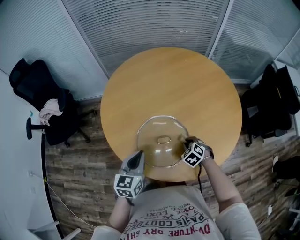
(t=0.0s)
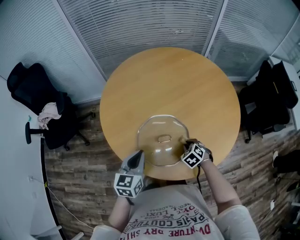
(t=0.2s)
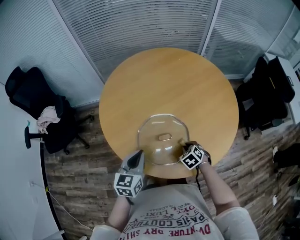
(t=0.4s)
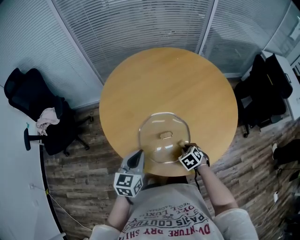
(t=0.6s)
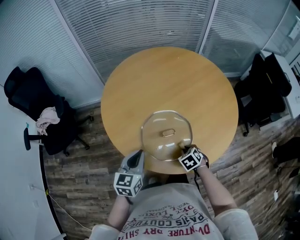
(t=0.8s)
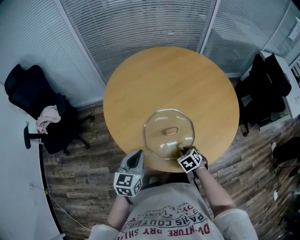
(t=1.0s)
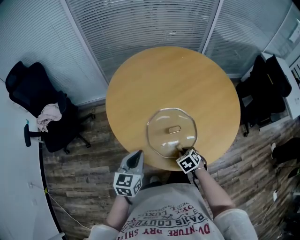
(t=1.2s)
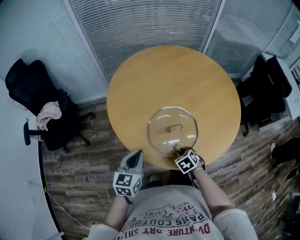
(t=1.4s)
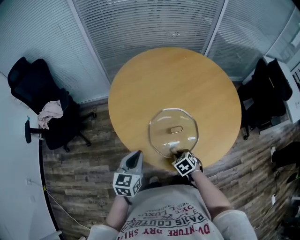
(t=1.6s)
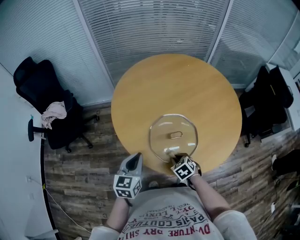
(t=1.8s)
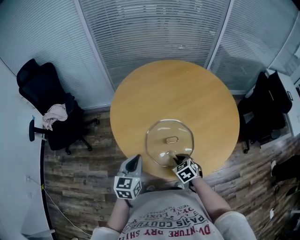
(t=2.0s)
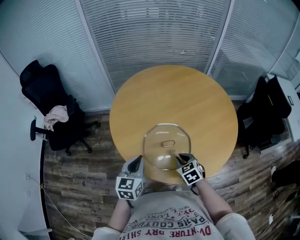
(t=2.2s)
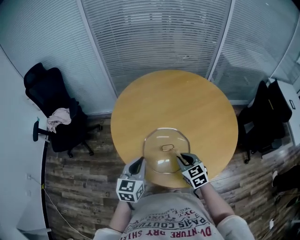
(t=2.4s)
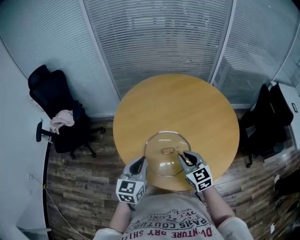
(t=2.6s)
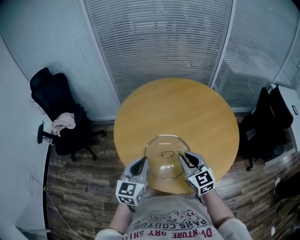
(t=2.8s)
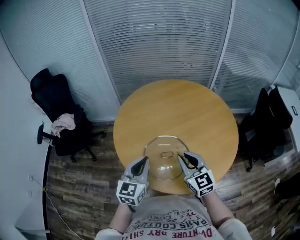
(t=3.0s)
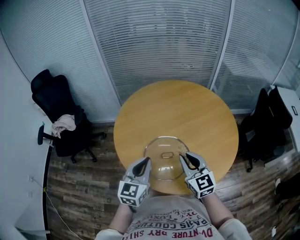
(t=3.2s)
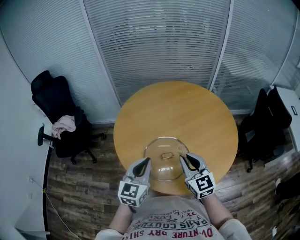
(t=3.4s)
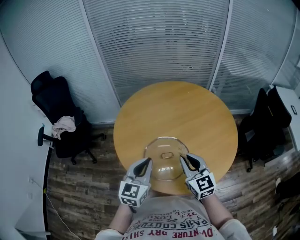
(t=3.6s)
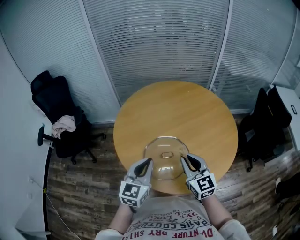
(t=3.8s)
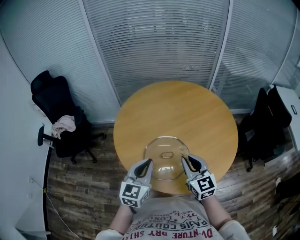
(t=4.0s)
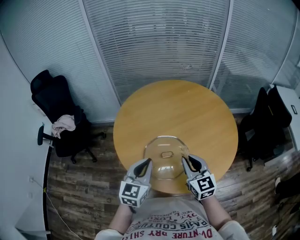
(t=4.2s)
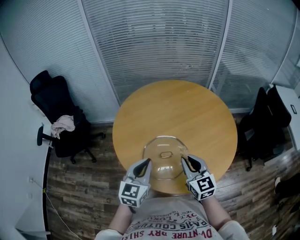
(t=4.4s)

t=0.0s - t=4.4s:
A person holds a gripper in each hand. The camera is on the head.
t=0.0s - t=1.4s: The right gripper moves backward and to the left, about 15 cm, and changes its angle by about 20 degrees; the left gripper heads to the left and backward, covering some 10 cm.
t=1.4s - t=3.0s: The left gripper shifts roughly 15 cm upward and to the right. Meanwhile the right gripper is displaced upward by roughly 25 cm, and tilts its fingers approximately 60 degrees upward.
t=3.0s - t=4.4s: The grippers move only a little.

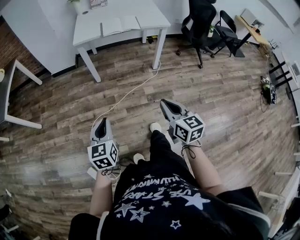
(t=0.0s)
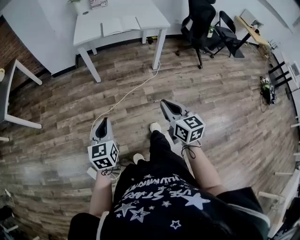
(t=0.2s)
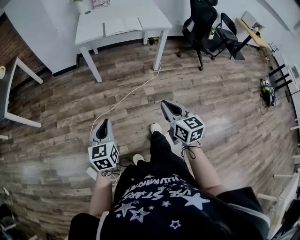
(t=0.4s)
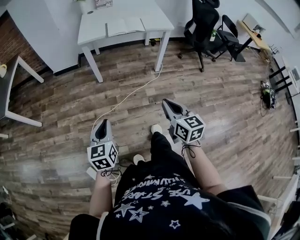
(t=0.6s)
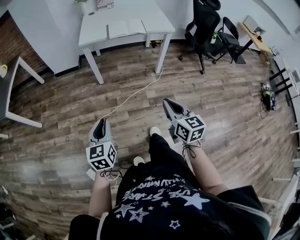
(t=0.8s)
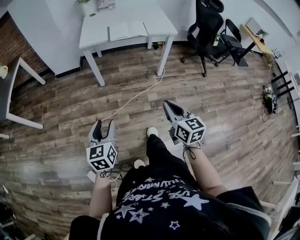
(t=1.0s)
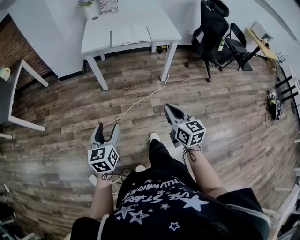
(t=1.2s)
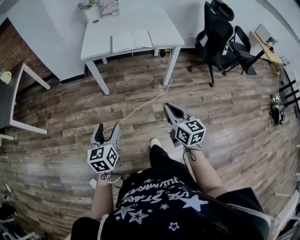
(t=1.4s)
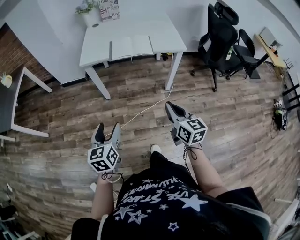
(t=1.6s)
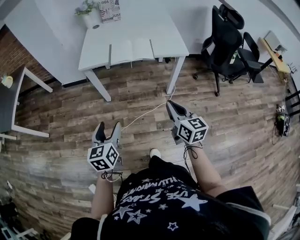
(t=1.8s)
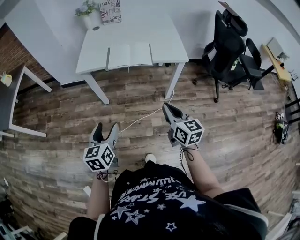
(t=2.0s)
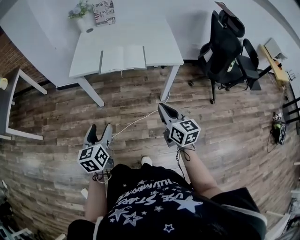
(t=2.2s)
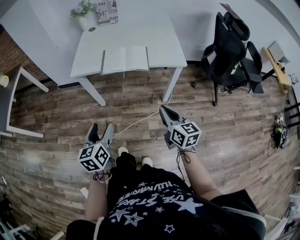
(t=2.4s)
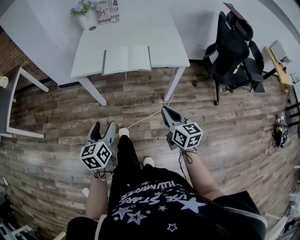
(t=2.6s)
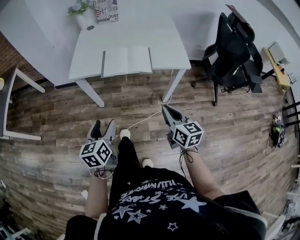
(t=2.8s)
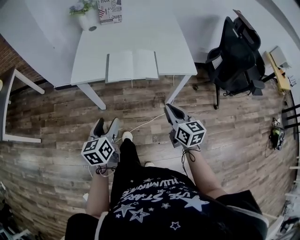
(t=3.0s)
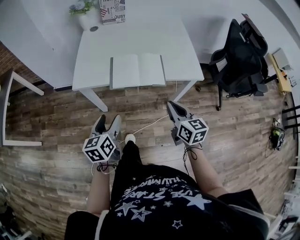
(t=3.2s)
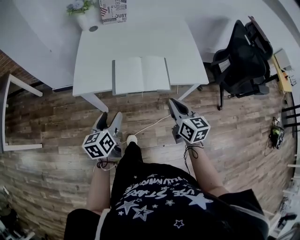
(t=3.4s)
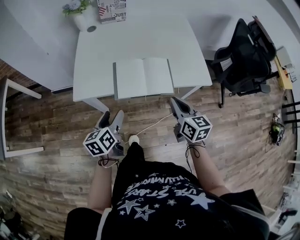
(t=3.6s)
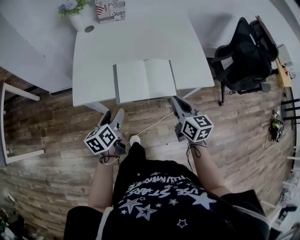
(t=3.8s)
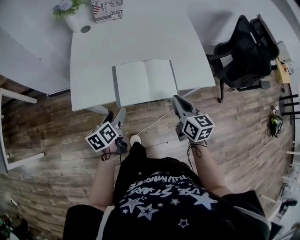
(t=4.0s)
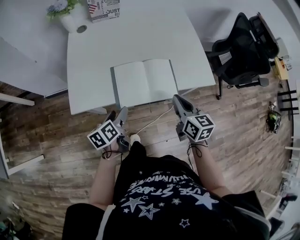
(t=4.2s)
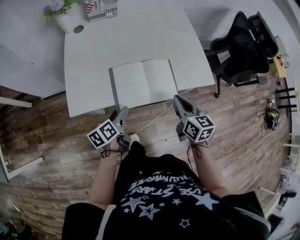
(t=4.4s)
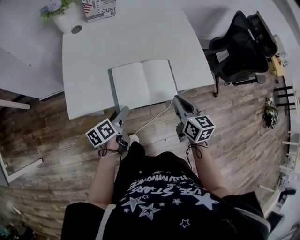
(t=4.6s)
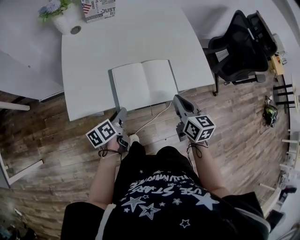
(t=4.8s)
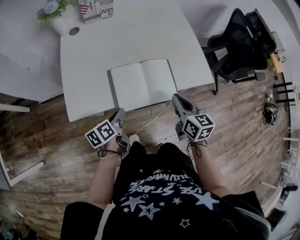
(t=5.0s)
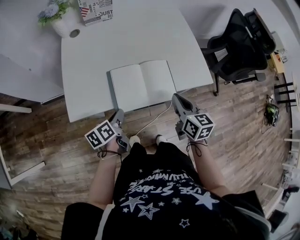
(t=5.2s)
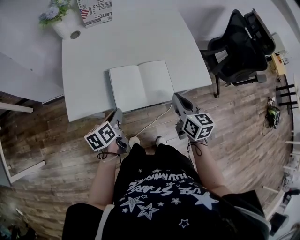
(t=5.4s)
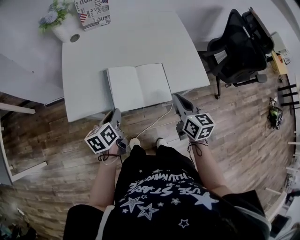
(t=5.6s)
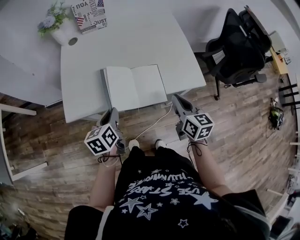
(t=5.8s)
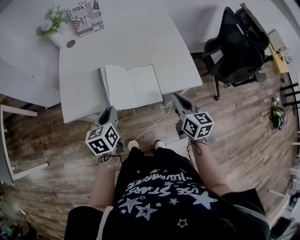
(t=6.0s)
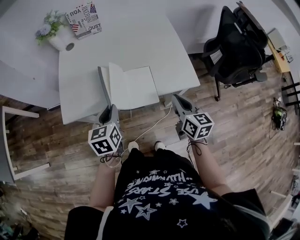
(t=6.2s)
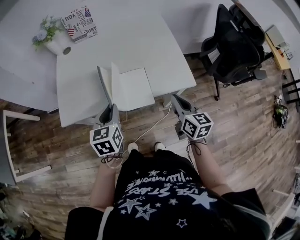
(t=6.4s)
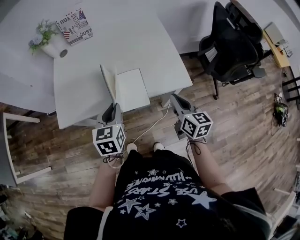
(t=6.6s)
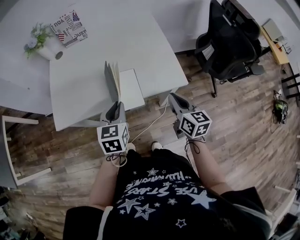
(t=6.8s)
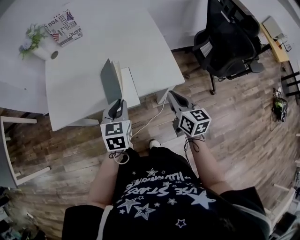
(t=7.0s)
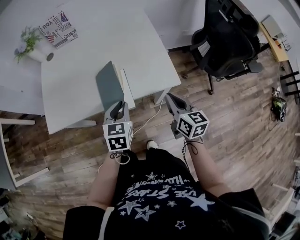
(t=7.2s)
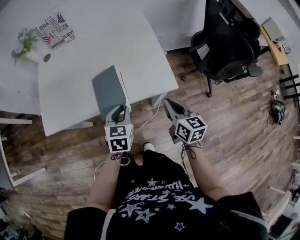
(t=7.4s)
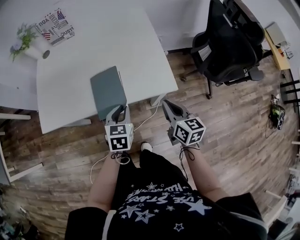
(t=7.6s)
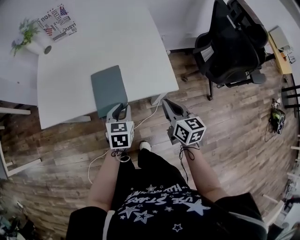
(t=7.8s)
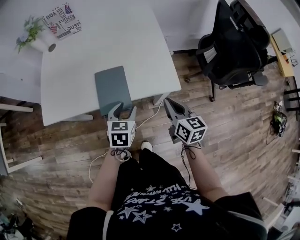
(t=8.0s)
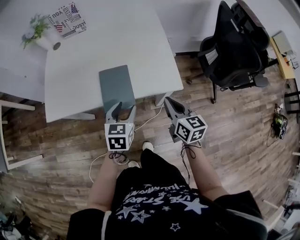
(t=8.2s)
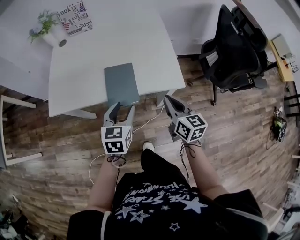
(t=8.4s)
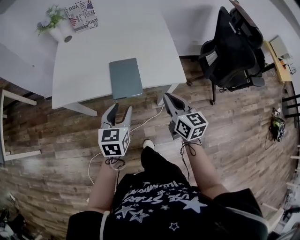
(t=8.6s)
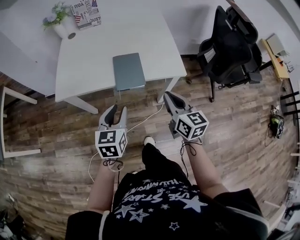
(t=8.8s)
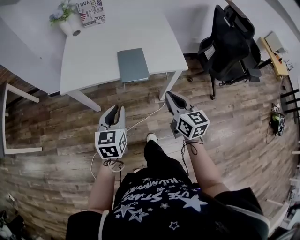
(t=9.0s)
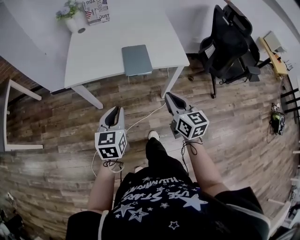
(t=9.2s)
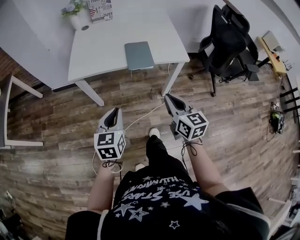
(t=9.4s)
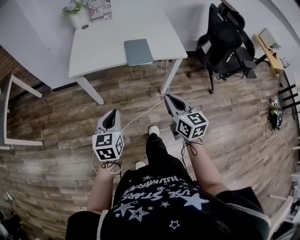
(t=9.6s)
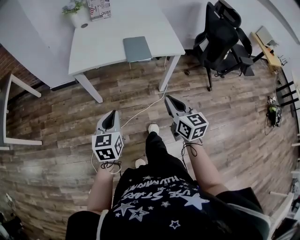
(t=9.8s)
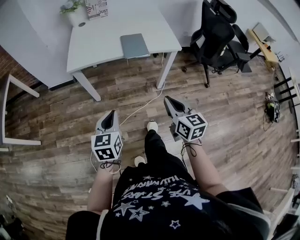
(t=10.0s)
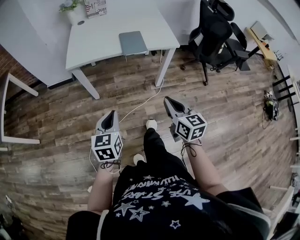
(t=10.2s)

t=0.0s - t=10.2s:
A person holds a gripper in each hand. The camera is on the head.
t=0.0s - t=1.4s: The two grippers go approximately 15 cm forward. The left gripper opens up.
t=1.4s - t=3.0s: Both grippers travel together forward, some 30 cm.
t=3.0s - t=4.4s: The left gripper heads forward and downward, covering some 25 cm, and turns by roughly 30 degrees; the right gripper shifts roughly 20 cm forward.
t=4.4s - t=5.8s: The right gripper travels to the right by some 5 cm, while the left gripper heads upward, covering about 10 cm, rotates some 20 degrees, and closes its fingers.
t=5.8s - t=7.2s: The right gripper goes some 15 cm to the right, while the left gripper is displaced to the right by roughly 25 cm, and swivels approximately 30 degrees.
t=7.2s - t=8.8s: The left gripper moves backward and to the left, roughly 15 cm. The right gripper moves backward, to the left and upward, some 15 cm.
t=8.8s - t=10.2s: The right gripper goes some 25 cm backward; the left gripper moves backward and to the left, about 30 cm, and closes up.

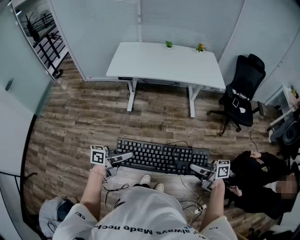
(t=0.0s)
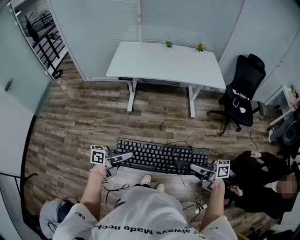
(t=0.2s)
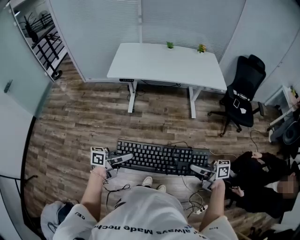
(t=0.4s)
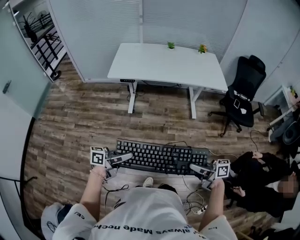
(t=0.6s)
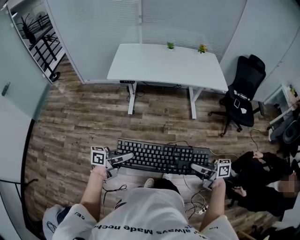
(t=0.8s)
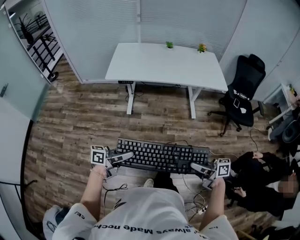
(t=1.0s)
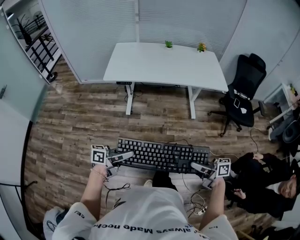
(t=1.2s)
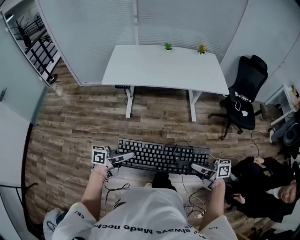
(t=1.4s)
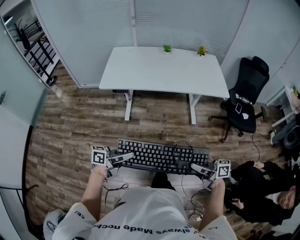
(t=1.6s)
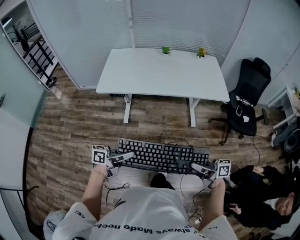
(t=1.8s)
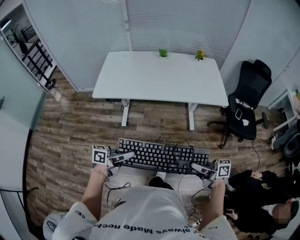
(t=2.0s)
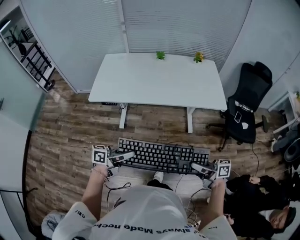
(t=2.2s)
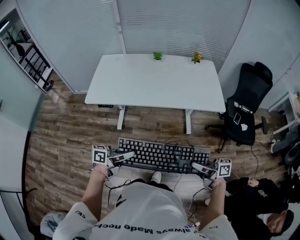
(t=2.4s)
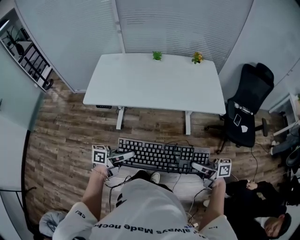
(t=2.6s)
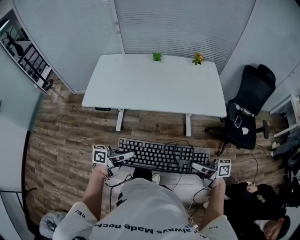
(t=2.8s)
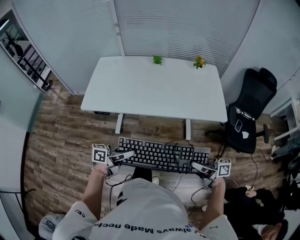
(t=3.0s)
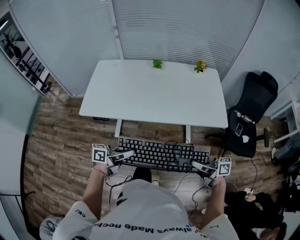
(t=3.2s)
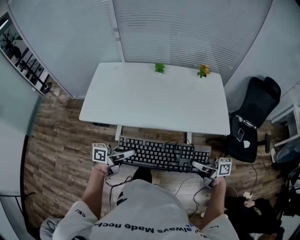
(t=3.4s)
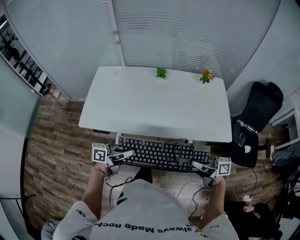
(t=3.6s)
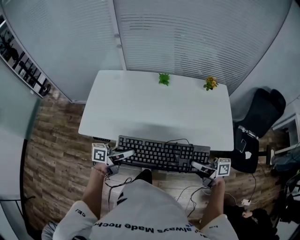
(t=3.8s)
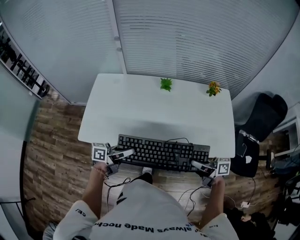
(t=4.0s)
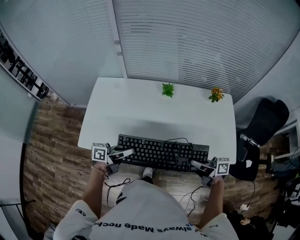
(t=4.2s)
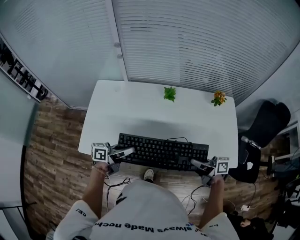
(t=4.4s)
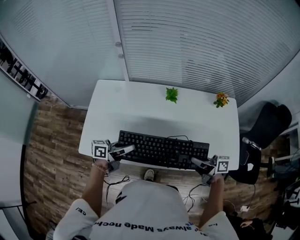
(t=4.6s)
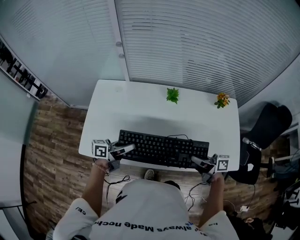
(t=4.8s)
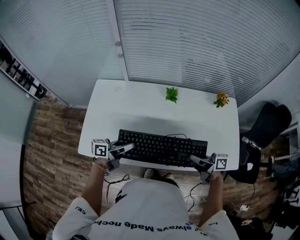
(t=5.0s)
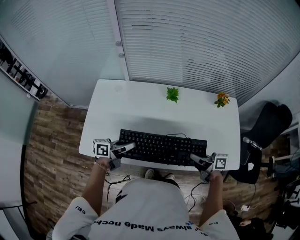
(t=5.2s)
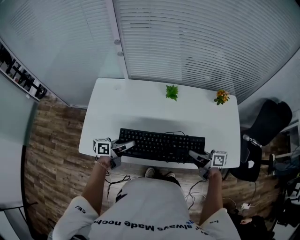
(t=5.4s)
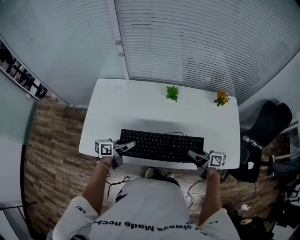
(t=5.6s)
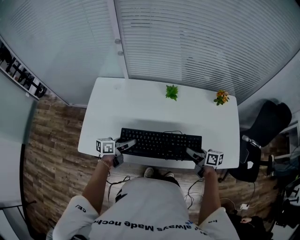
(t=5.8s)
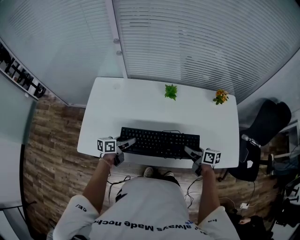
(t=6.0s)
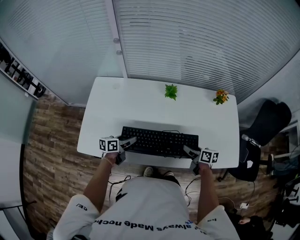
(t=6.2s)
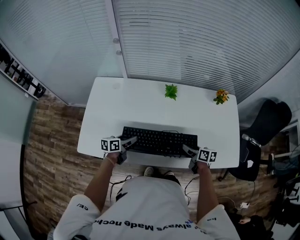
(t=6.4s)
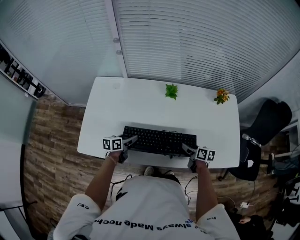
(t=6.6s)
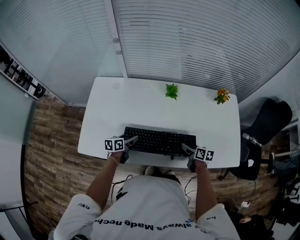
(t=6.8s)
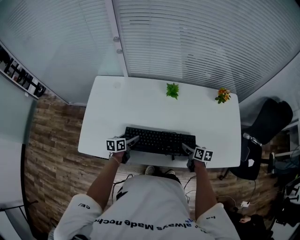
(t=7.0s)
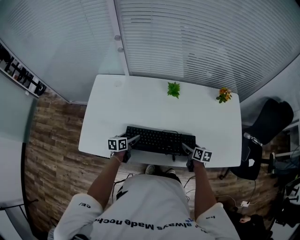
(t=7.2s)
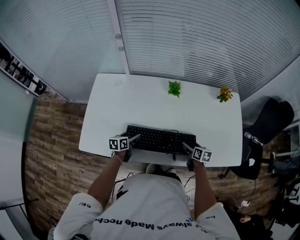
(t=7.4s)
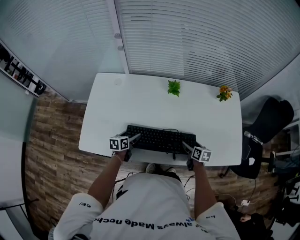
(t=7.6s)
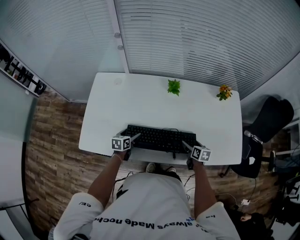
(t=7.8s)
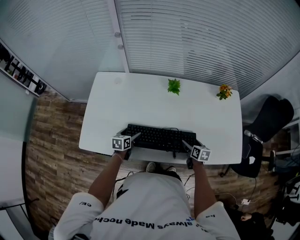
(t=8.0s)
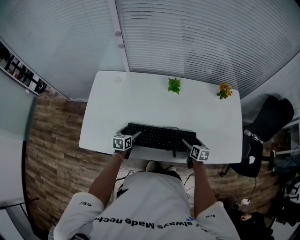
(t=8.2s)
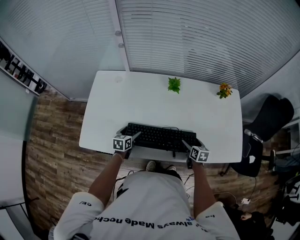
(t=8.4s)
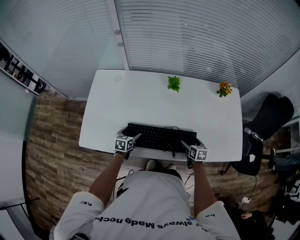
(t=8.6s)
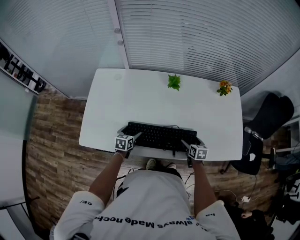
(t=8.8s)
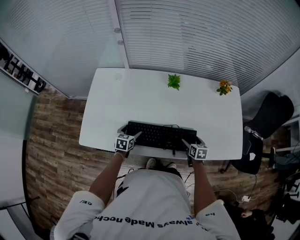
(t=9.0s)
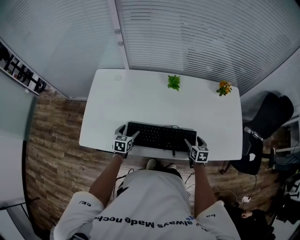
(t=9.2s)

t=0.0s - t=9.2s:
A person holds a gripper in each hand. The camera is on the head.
t=0.0s - t=1.6s: The right gripper ends up roughly 15 cm from where it was; the left gripper shifts by about 15 cm.
t=1.6s - t=3.0s: The left gripper changes place by approximately 25 cm; the right gripper ends up approximately 25 cm from where it was.
t=3.0s - t=4.6s: The right gripper ends up about 40 cm from where it was. Meanwhile the left gripper ends up some 40 cm from where it was.
t=4.6s - t=6.2s: The right gripper is displaced downward and forward by some 15 cm, swivels about 30 degrees, and opens up; the left gripper shifts approximately 15 cm downward, swivels roughly 20 degrees, and opens.
t=6.2s - t=7.6s: The two grippers go some 5 cm downward. The right gripper changes its angle by some 20 degrees.
t=7.6s - t=9.2s: The left gripper turns by some 20 degrees.
